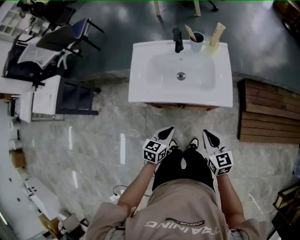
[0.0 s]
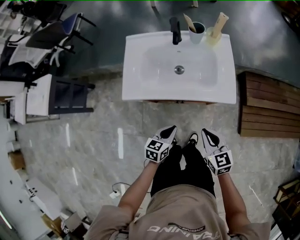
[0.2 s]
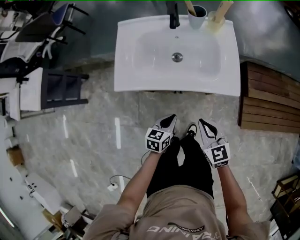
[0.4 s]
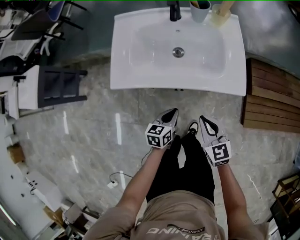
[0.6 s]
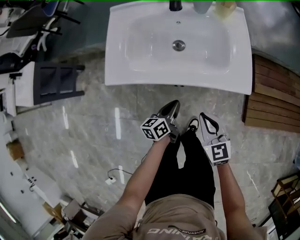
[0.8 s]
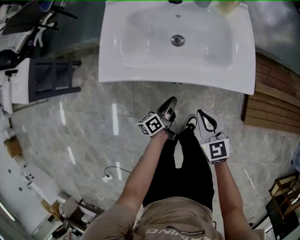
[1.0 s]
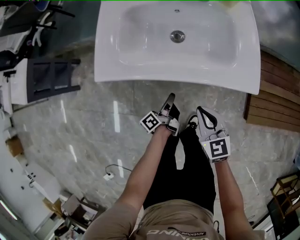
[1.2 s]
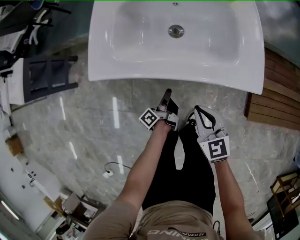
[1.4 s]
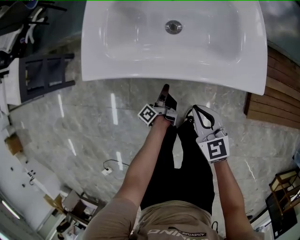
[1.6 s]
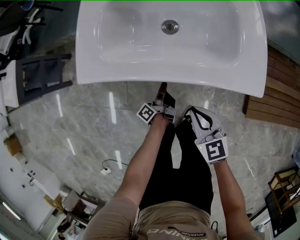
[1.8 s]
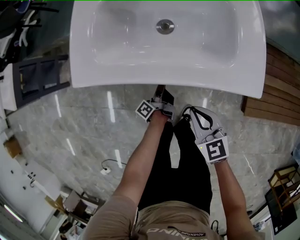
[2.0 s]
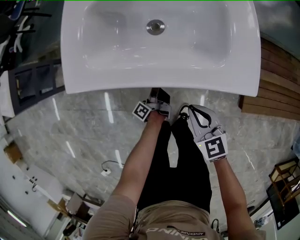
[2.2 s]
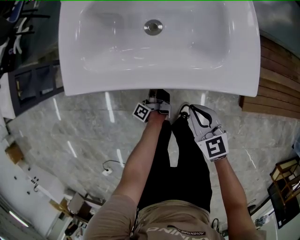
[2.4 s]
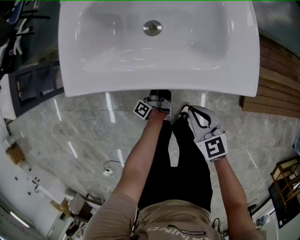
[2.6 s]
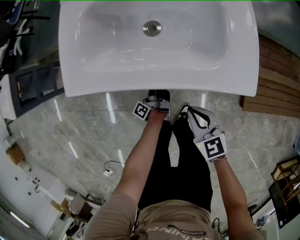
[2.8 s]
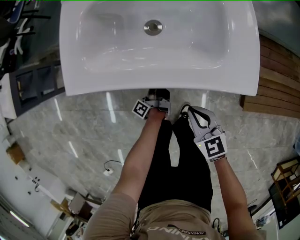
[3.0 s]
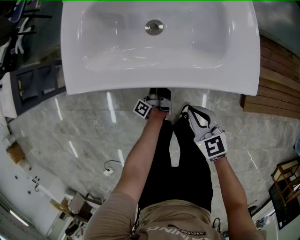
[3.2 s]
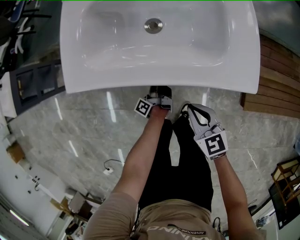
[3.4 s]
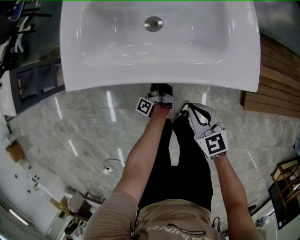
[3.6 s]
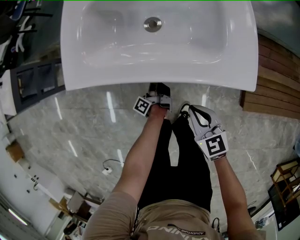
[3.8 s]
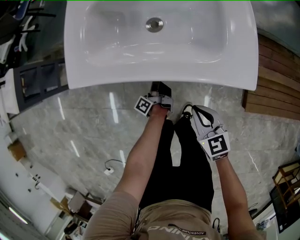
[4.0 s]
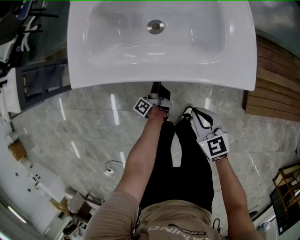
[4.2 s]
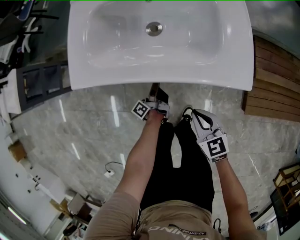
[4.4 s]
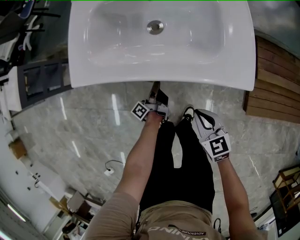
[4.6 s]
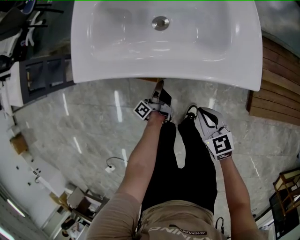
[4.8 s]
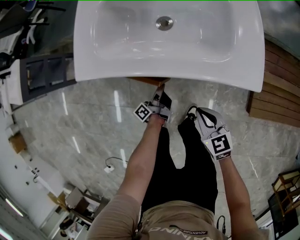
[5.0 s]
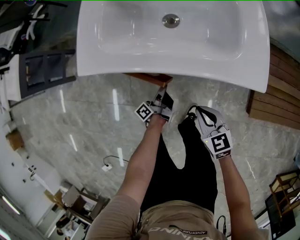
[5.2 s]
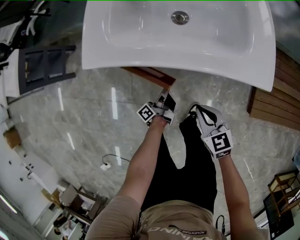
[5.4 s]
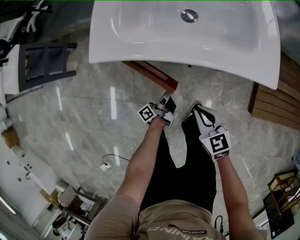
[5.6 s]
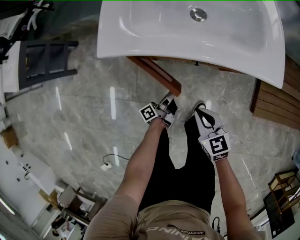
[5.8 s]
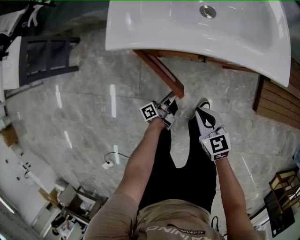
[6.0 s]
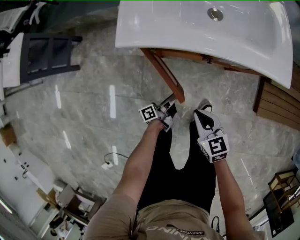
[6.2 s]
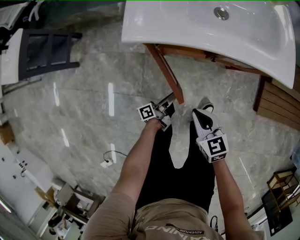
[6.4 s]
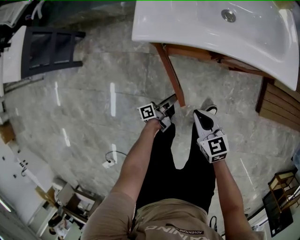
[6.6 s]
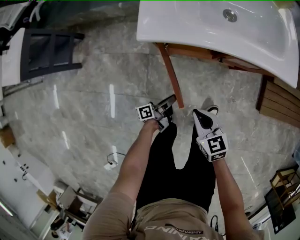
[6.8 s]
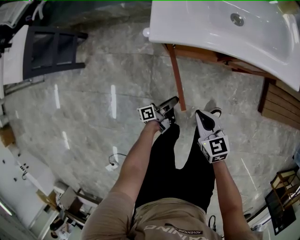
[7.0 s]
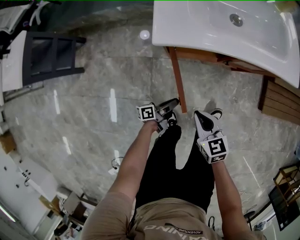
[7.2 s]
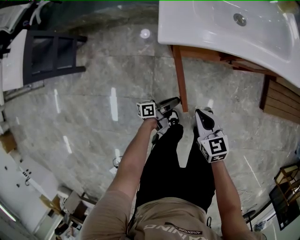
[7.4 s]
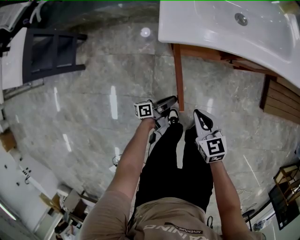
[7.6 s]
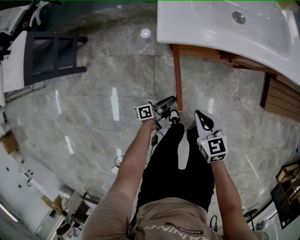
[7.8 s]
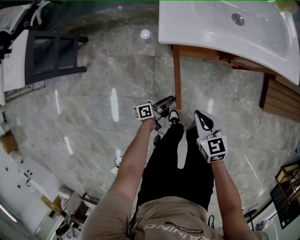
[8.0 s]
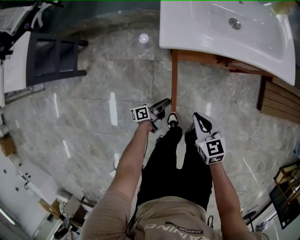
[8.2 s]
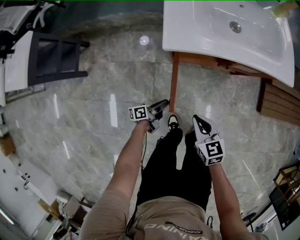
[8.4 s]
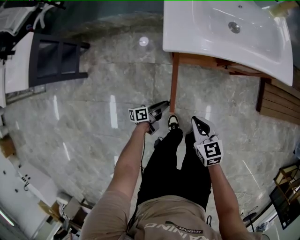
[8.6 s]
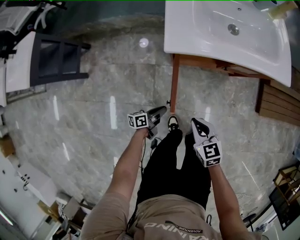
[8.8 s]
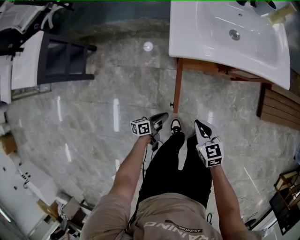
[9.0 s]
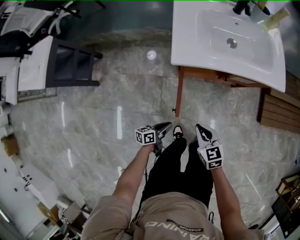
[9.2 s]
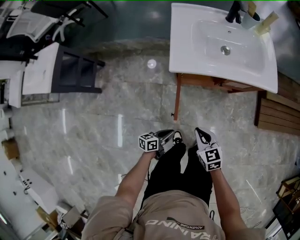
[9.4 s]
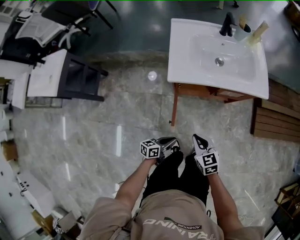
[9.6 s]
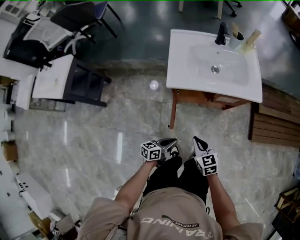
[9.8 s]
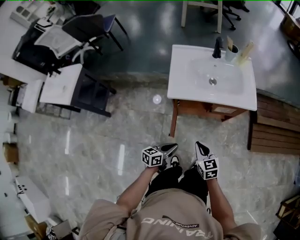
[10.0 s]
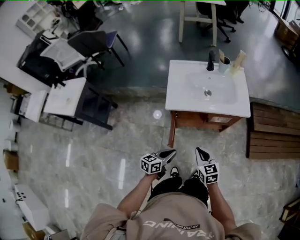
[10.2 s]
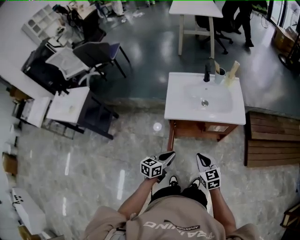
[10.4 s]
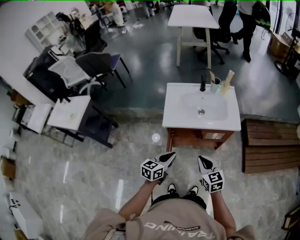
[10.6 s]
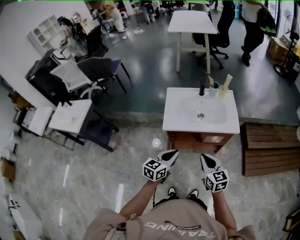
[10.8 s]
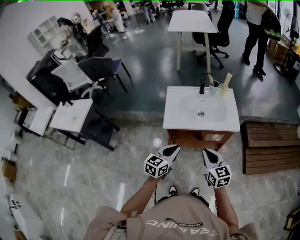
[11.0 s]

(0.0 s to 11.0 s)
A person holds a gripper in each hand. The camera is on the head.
0.0 s - 1.6 s: The right gripper goes roughly 15 cm downward. Meanwhile the left gripper goes approximately 25 cm downward, and rotates around the line of its fingers by some 80 degrees, counterclockwise from behind.
1.6 s - 3.2 s: The left gripper moves some 5 cm.
3.2 s - 4.8 s: The right gripper changes place by approximately 5 cm.
4.8 s - 6.2 s: The right gripper moves to the left, roughly 20 cm, while the left gripper heads backward and to the left, covering roughly 15 cm, and turns by roughly 20 degrees.
6.2 s - 7.8 s: The grippers both shift to the left by roughly 10 cm.
7.8 s - 9.4 s: The right gripper shifts roughly 5 cm upward, while the left gripper shifts roughly 10 cm upward and backward, turns by some 40 degrees, and closes up.
9.4 s - 11.0 s: The left gripper heads upward, covering roughly 40 cm, and rolls clockwise, seen from behind, by approximately 40 degrees, while the right gripper shifts about 30 cm upward and to the right, and changes its angle by roughly 30 degrees.

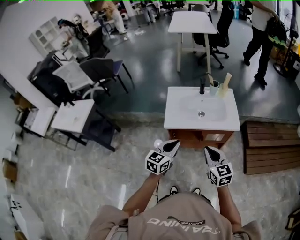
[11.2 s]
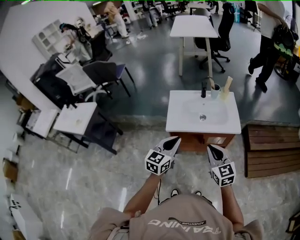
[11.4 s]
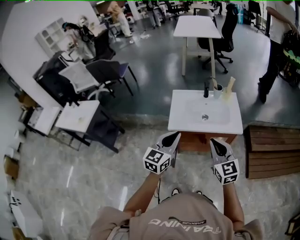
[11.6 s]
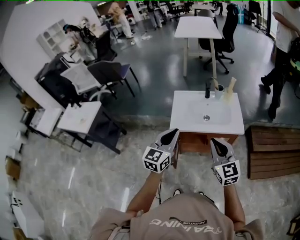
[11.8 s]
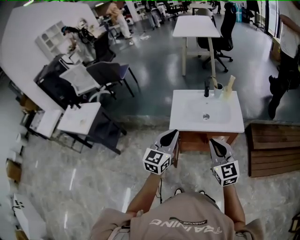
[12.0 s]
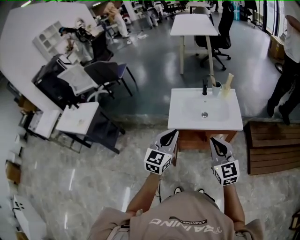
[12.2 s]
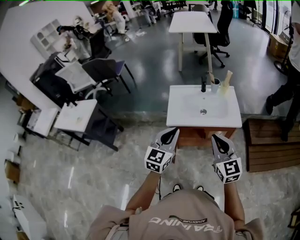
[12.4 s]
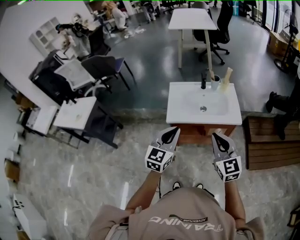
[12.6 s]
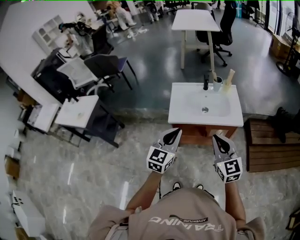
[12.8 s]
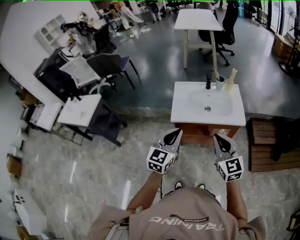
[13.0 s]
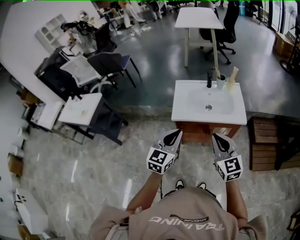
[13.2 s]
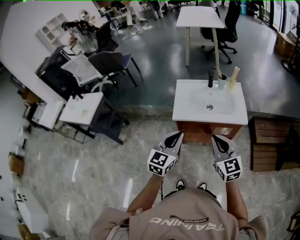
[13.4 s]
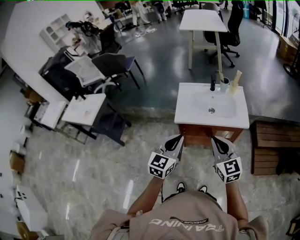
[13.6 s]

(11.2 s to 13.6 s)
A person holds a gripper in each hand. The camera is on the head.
11.2 s - 12.4 s: Both grippers move upward, roughly 10 cm.
12.4 s - 13.6 s: There are only small adjustments of the grippers.

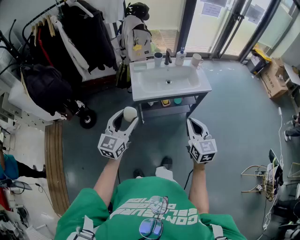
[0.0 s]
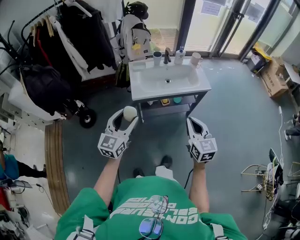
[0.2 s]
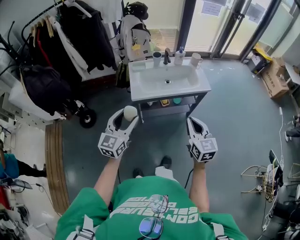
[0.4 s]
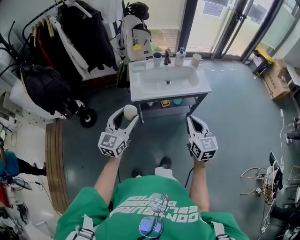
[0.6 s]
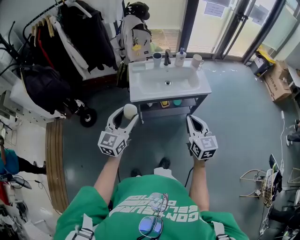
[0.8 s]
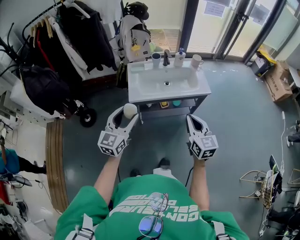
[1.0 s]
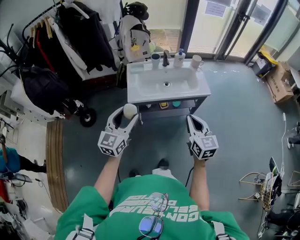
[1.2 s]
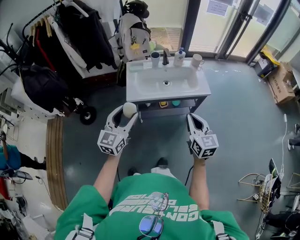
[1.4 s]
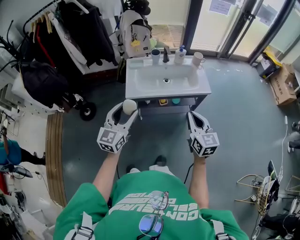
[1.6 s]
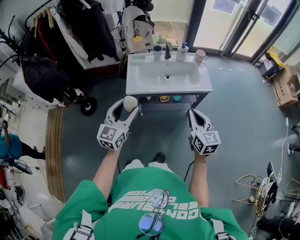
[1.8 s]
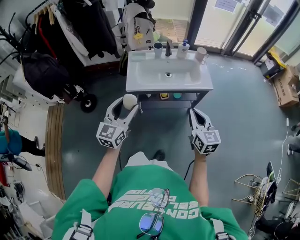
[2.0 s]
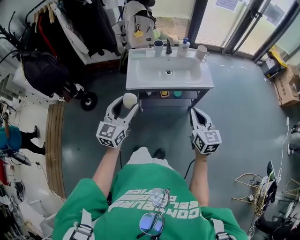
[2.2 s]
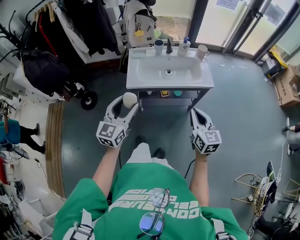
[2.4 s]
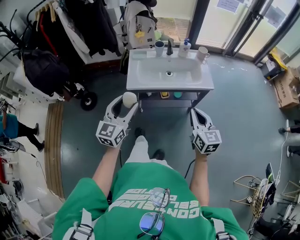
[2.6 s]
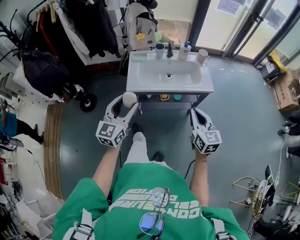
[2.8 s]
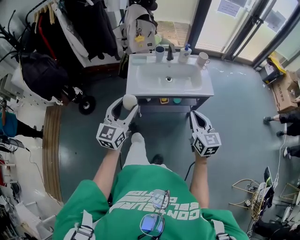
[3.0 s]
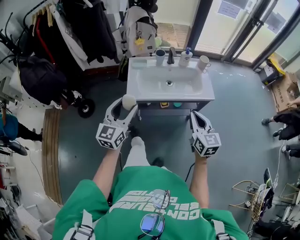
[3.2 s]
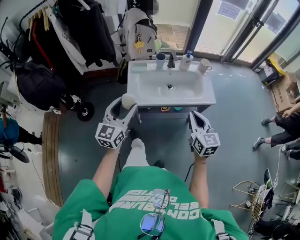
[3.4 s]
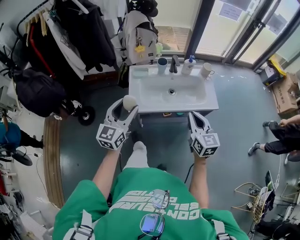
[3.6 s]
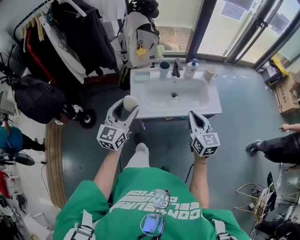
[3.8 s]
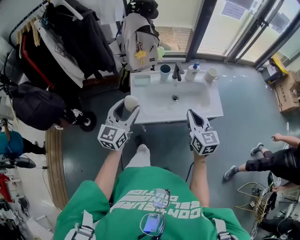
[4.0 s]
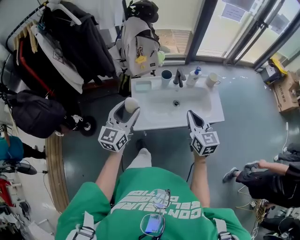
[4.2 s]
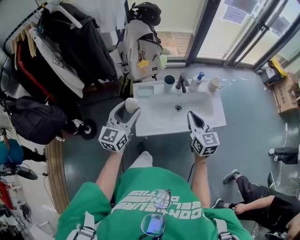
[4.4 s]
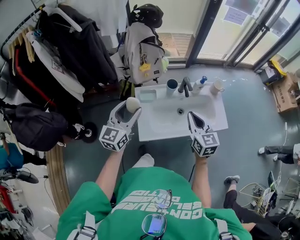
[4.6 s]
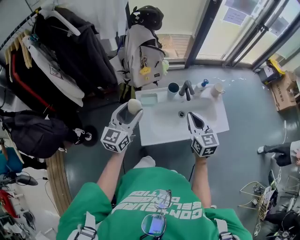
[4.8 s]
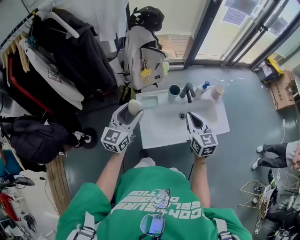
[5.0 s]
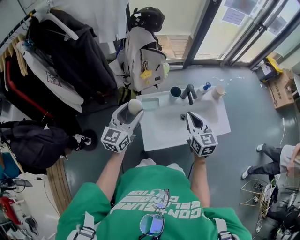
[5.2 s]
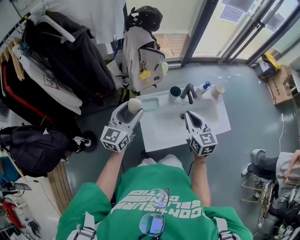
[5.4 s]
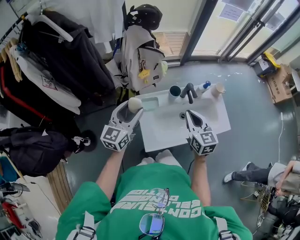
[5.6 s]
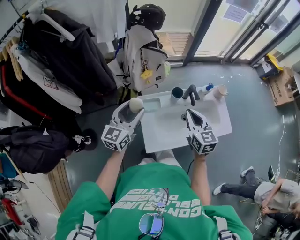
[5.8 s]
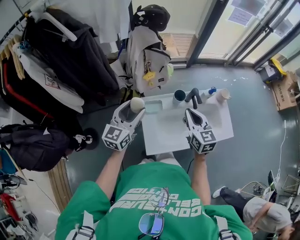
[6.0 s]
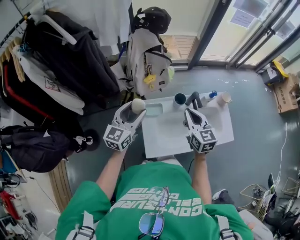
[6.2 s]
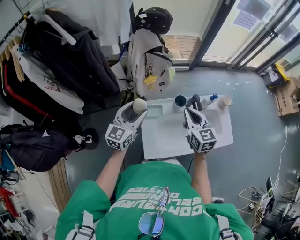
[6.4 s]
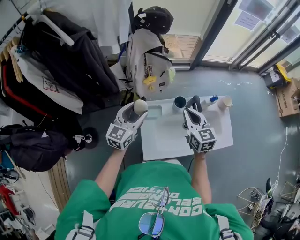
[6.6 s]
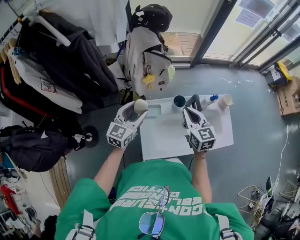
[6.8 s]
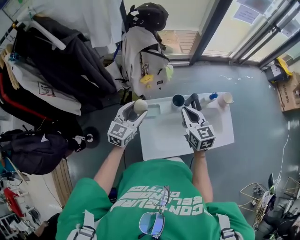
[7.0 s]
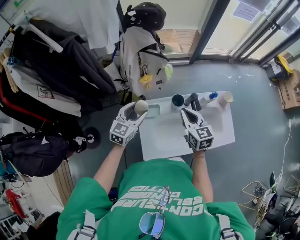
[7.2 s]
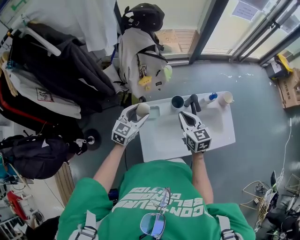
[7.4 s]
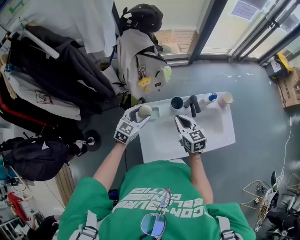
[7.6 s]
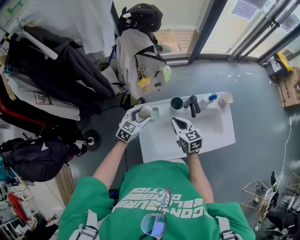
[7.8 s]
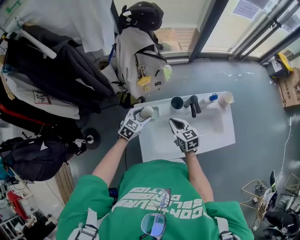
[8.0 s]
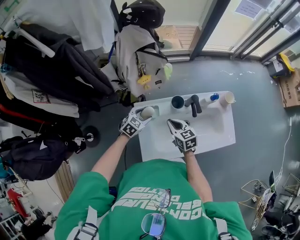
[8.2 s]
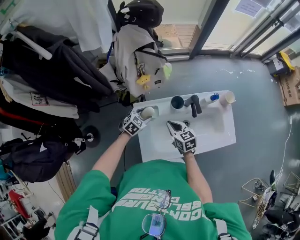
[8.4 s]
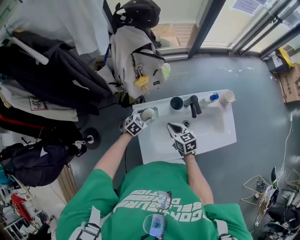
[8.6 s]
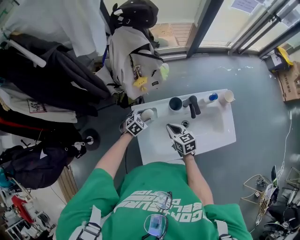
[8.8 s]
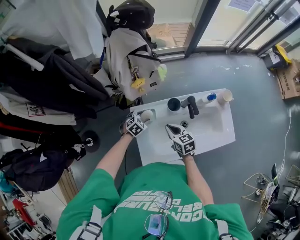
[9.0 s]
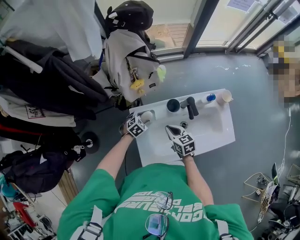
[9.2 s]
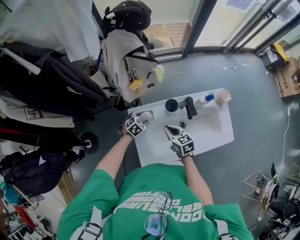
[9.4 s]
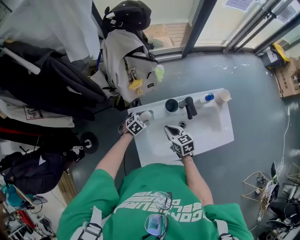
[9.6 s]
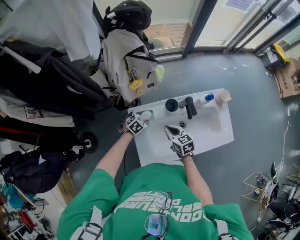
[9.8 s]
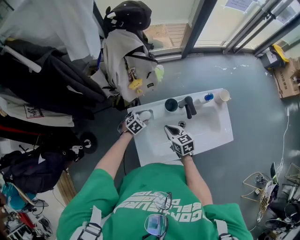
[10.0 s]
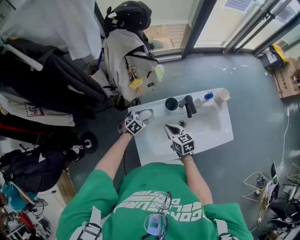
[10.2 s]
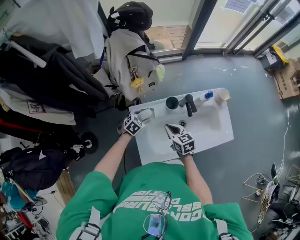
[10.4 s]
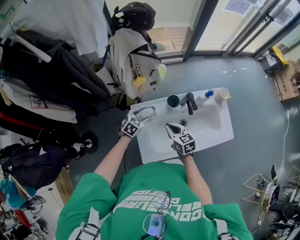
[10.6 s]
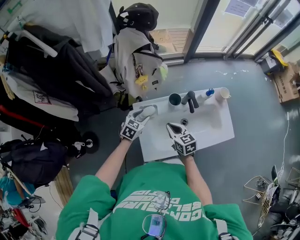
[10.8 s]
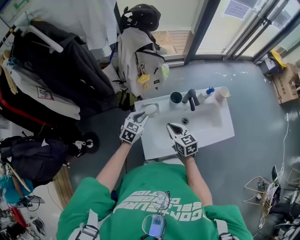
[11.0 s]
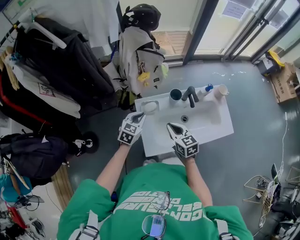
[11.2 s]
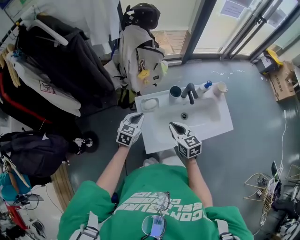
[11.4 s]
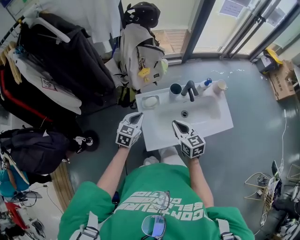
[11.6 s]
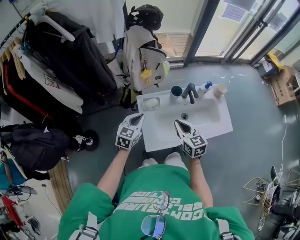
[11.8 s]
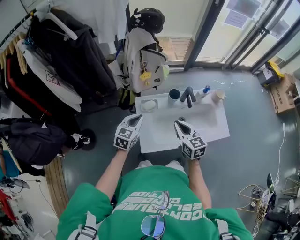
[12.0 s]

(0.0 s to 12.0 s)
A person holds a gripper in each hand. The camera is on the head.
0.0 s - 1.6 s: Both grippers travel together to the right and forward, about 10 cm.
1.6 s - 3.0 s: There are only small adjustments of the grippers.
3.0 s - 4.4 s: The right gripper goes some 30 cm forward and to the left. Meanwhile the left gripper heads forward, covering about 30 cm.
4.4 s - 6.0 s: Both grippers move forward and to the left, approximately 15 cm.
6.0 s - 7.6 s: The left gripper moves downward, forward and to the right, approximately 20 cm, and turns by some 30 degrees; the right gripper is displaced downward and forward by approximately 10 cm.
7.6 s - 9.0 s: The right gripper shifts about 10 cm downward. Meanwhile the left gripper heads downward, covering some 20 cm, and angles its fingers downward, by some 30 degrees.
9.0 s - 10.4 s: There are only small adjustments of the grippers.
10.4 s - 12.0 s: Both grippers travel together upward and backward, some 20 cm. The left gripper tips its fingers upward by approximately 30 degrees, and closes its fingers.
